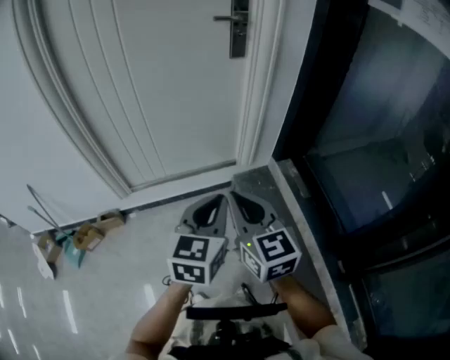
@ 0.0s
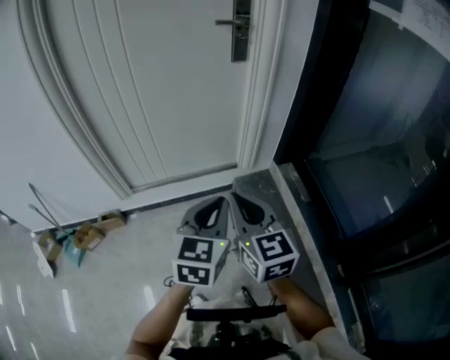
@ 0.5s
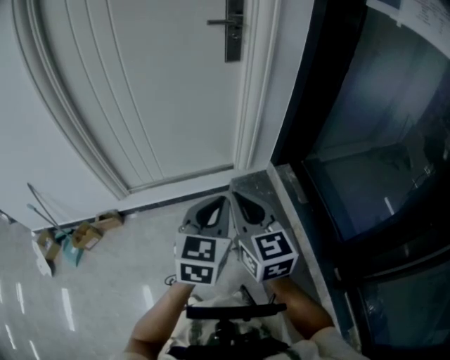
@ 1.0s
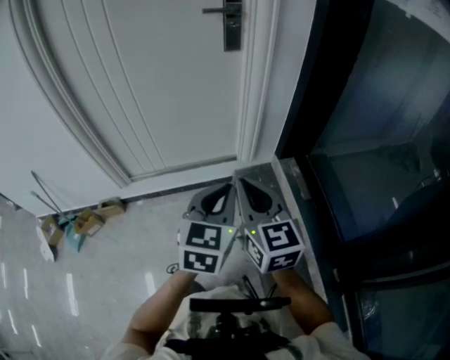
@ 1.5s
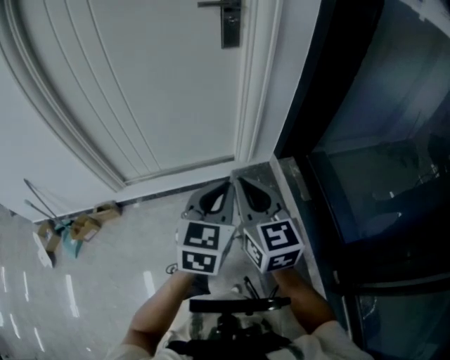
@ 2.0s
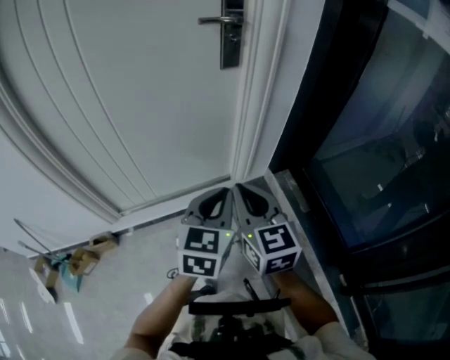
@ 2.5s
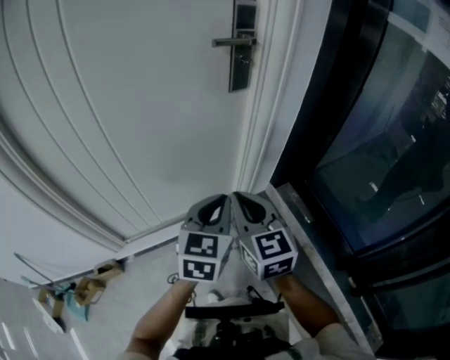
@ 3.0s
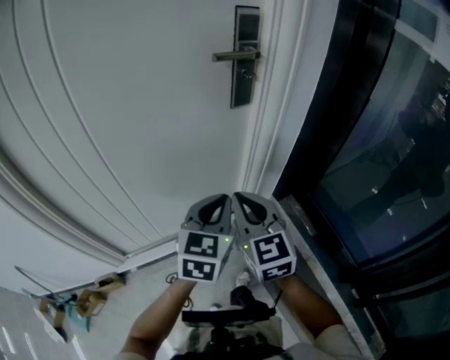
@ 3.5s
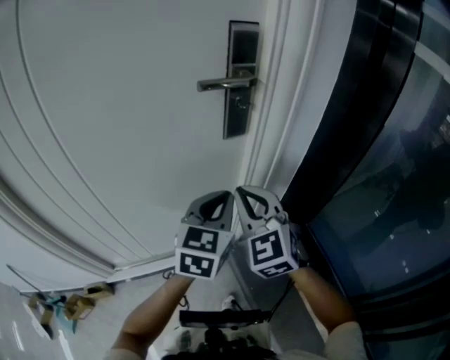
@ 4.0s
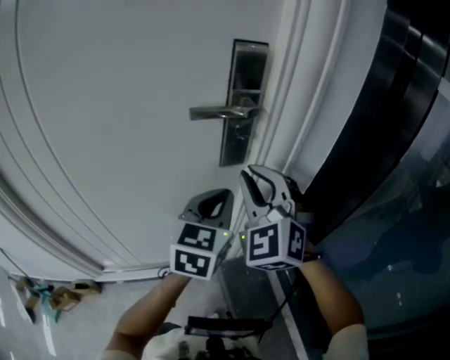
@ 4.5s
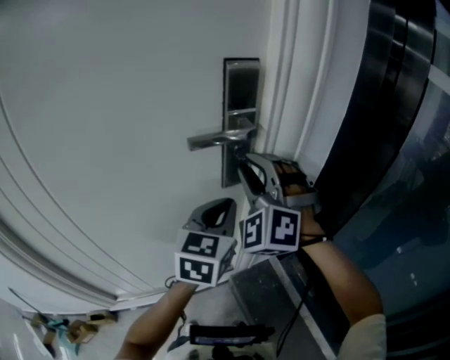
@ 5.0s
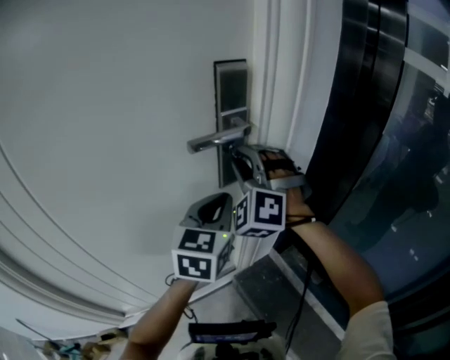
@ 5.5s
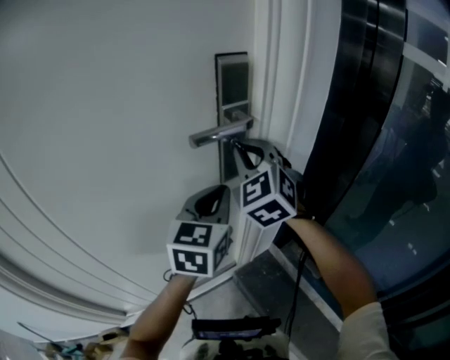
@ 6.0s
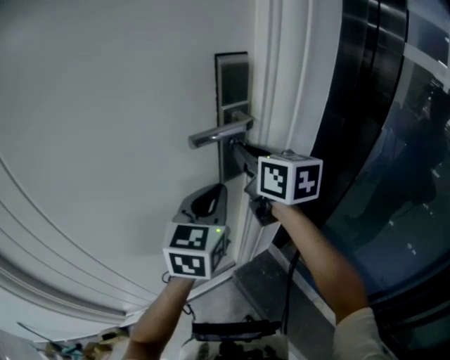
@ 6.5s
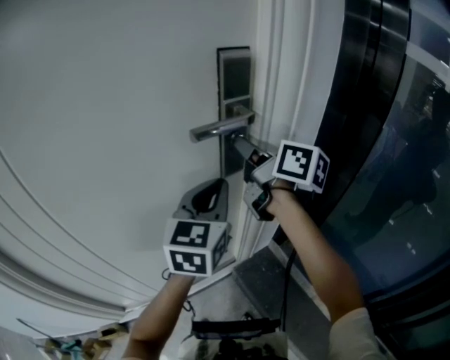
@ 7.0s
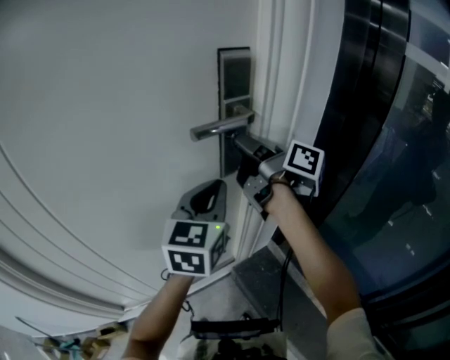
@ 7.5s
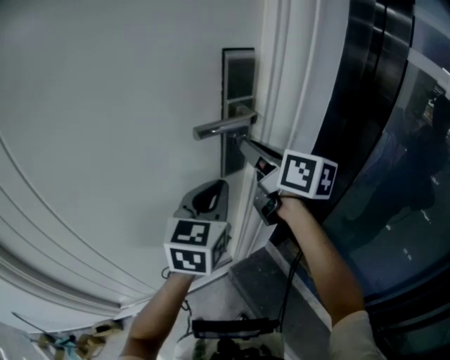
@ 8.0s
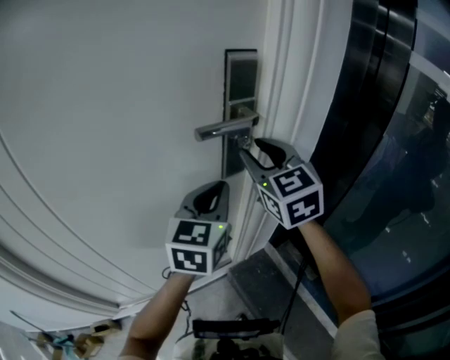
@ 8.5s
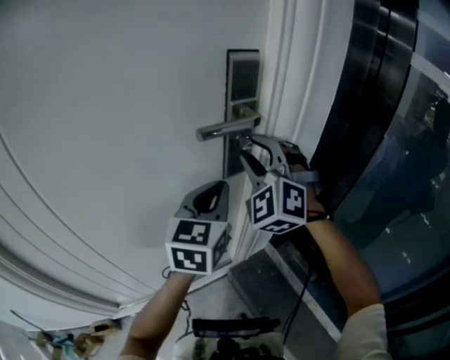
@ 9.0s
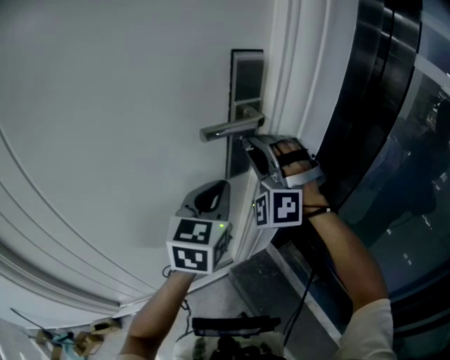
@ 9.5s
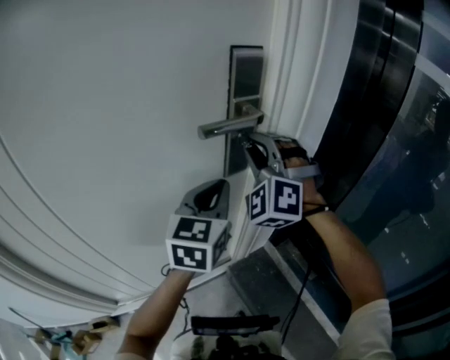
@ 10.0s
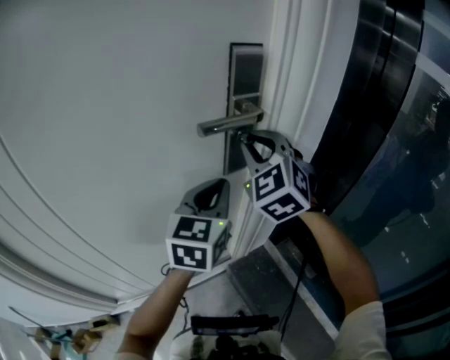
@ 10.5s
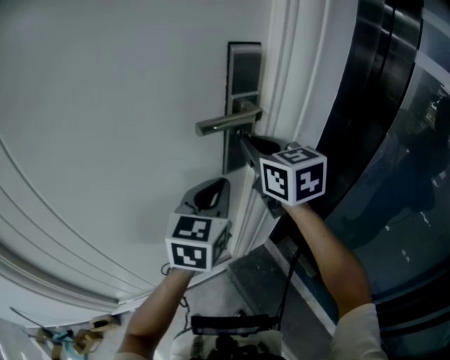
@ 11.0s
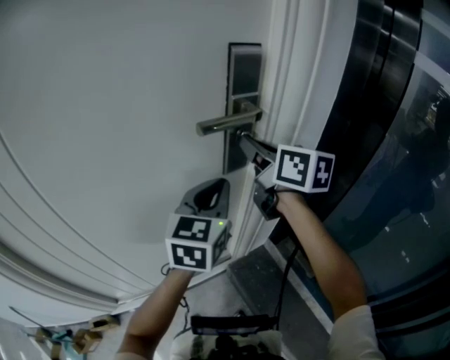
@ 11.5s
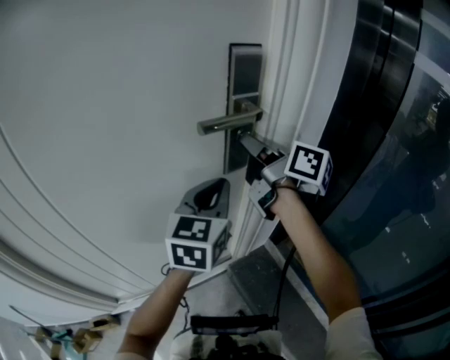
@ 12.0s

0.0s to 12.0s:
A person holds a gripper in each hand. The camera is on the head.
0.0s to 2.0s: The two grippers go approximately 10 cm to the right and forward.
2.0s to 4.0s: The two grippers go some 30 cm forward. The right gripper rotates approximately 40 degrees.
4.0s to 6.0s: The right gripper goes about 20 cm forward and upward, and opens, then closes again, while the left gripper heads forward and upward, covering approximately 15 cm.
6.0s to 8.0s: The right gripper twists roughly 70 degrees clockwise, seen from behind.
8.0s to 10.0s: The right gripper rotates around the line of its fingers by approximately 100 degrees, counterclockwise from behind.
10.0s to 12.0s: The right gripper rolls clockwise, seen from behind, by approximately 130 degrees.

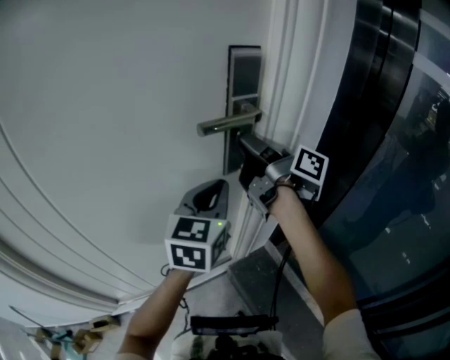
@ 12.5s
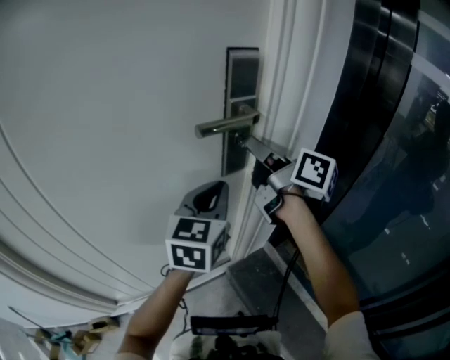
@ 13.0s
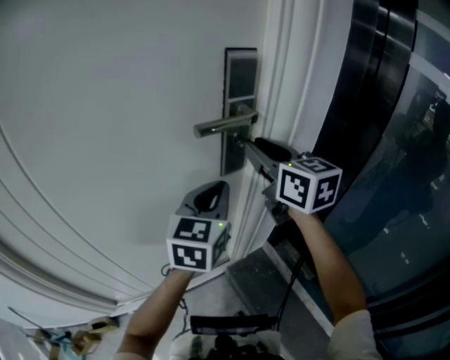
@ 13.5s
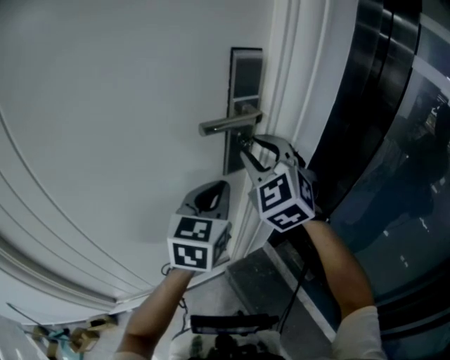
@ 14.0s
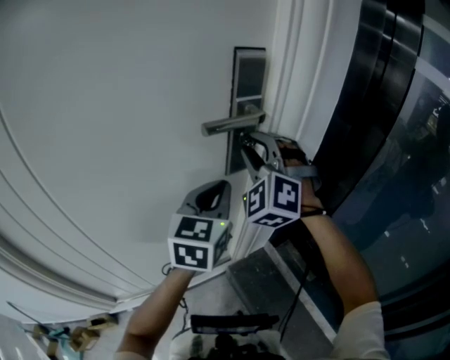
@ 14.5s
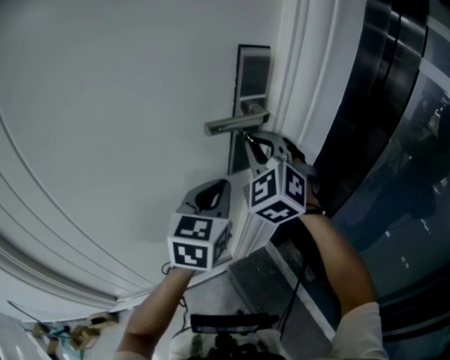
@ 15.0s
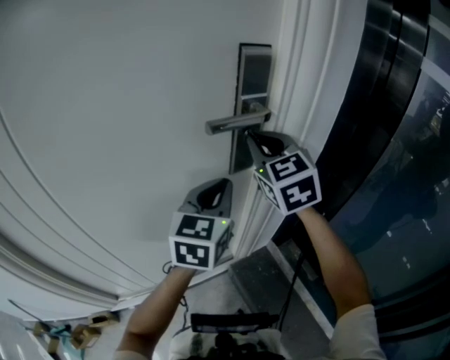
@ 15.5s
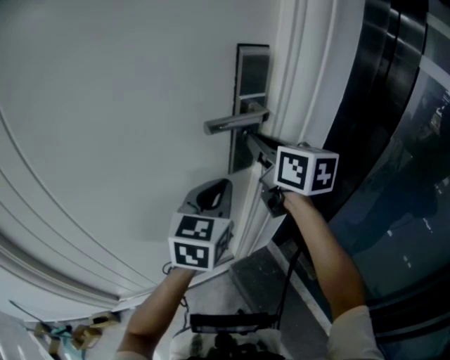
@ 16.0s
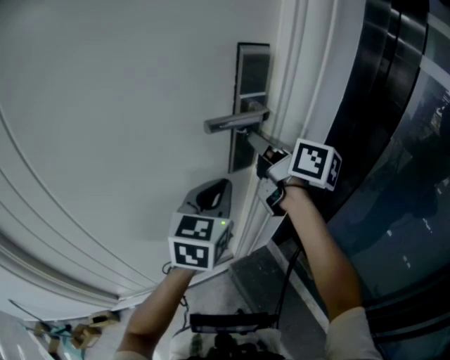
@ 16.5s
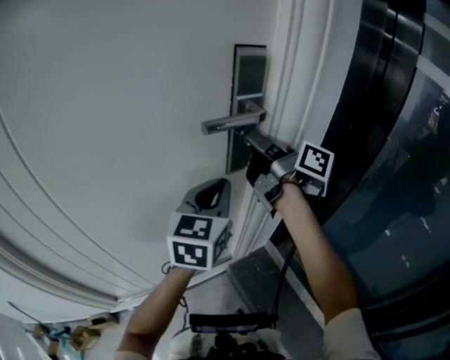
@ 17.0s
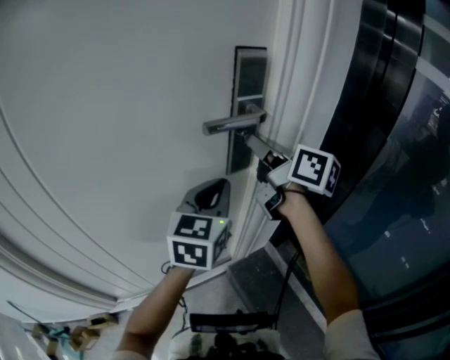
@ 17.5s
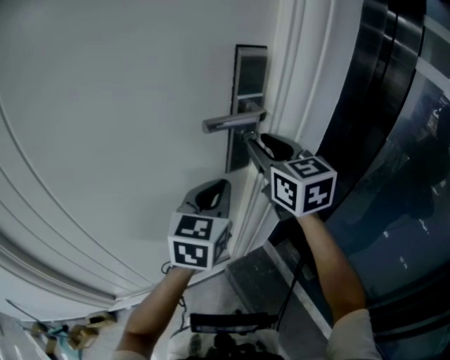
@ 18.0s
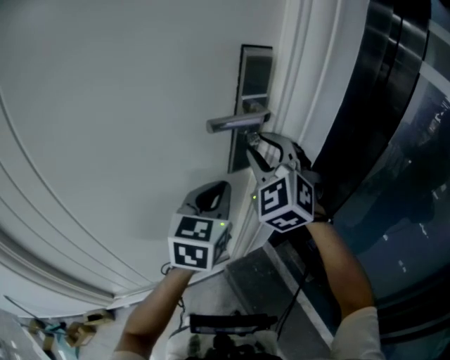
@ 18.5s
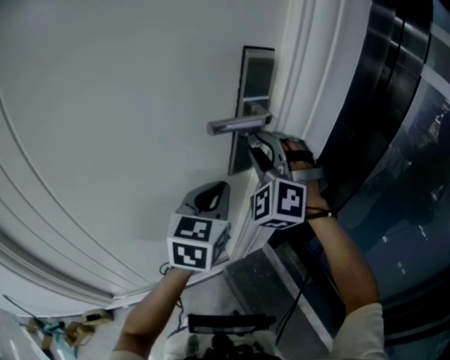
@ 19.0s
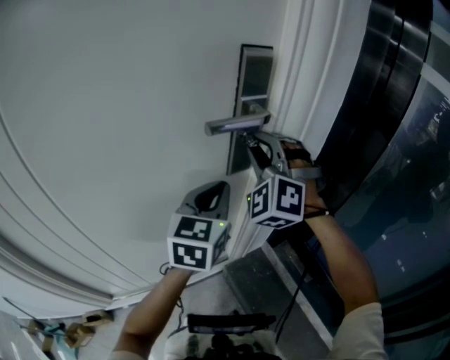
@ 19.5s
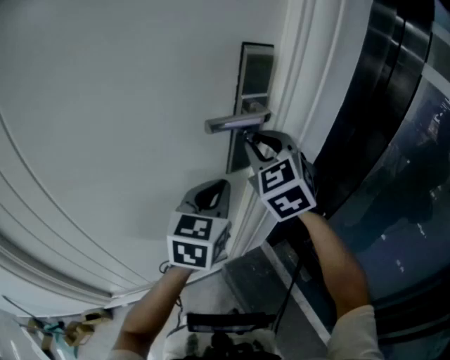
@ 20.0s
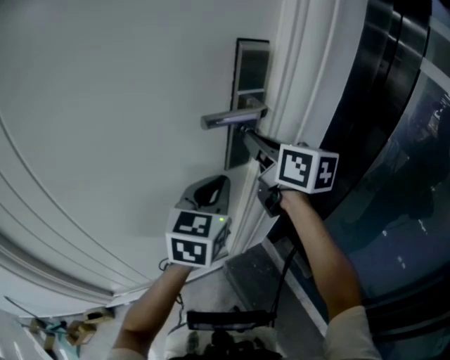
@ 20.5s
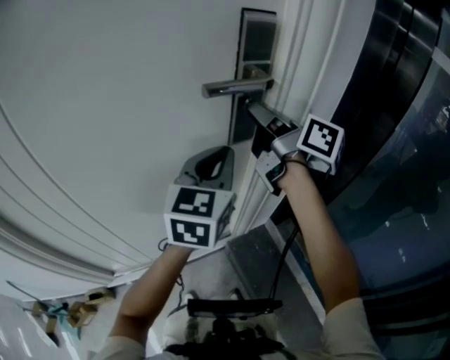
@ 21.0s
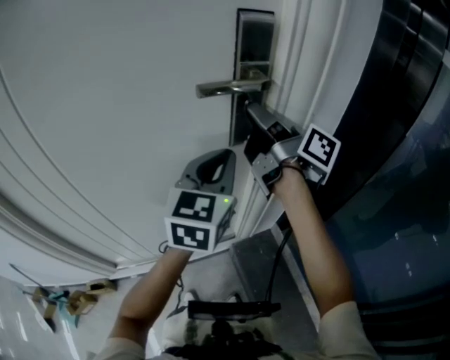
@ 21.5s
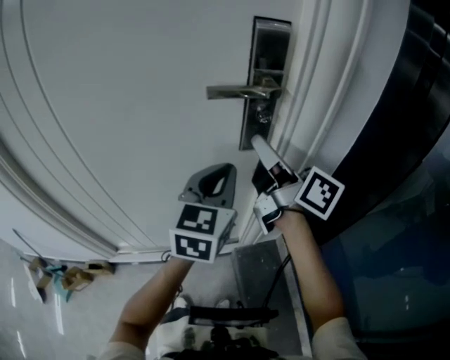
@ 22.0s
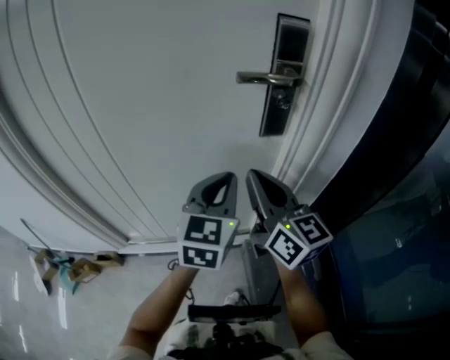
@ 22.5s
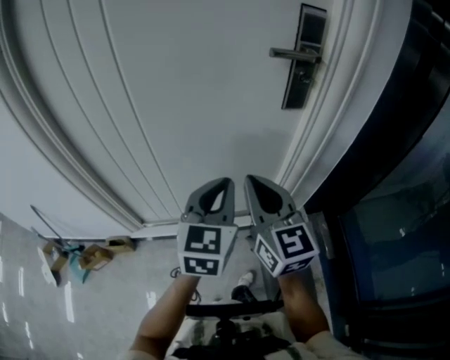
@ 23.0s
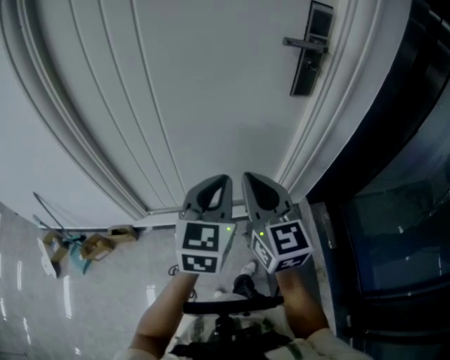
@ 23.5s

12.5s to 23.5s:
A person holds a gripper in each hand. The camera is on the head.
12.5s to 14.5s: The right gripper twists approximately 140 degrees counterclockwise, seen from behind.
14.5s to 16.0s: The right gripper rotates around the line of its fingers by roughly 80 degrees, clockwise from behind, and closes its fingers.
16.0s to 18.0s: The right gripper changes its angle by roughly 20 degrees, and opens its fingers.
18.0s to 20.0s: The right gripper swivels some 30 degrees.
20.0s to 21.5s: The right gripper twists approximately 100 degrees clockwise, seen from behind.
21.5s to 23.5s: Both grippers travel together backward, to the left and downward, some 35 cm. The right gripper rolls counterclockwise, seen from behind, by about 70 degrees.

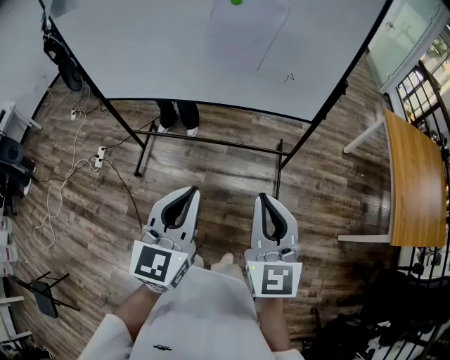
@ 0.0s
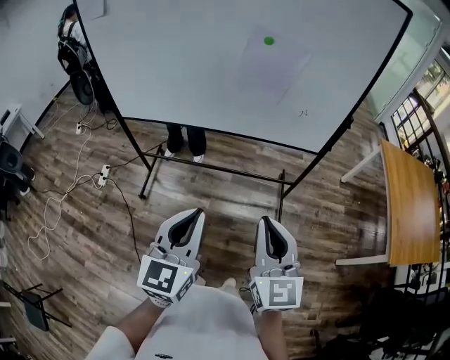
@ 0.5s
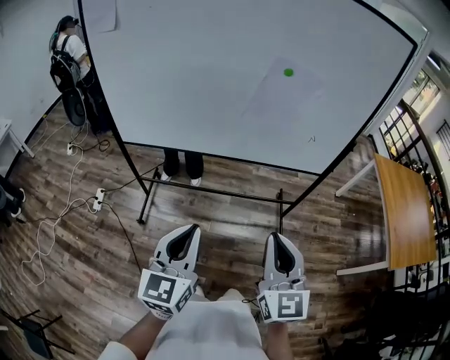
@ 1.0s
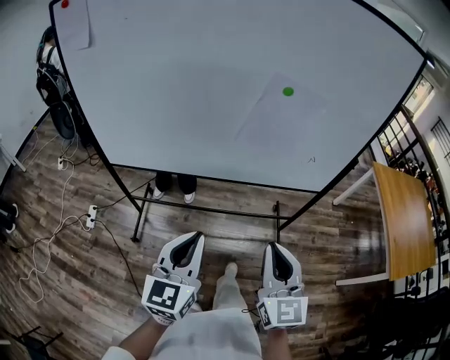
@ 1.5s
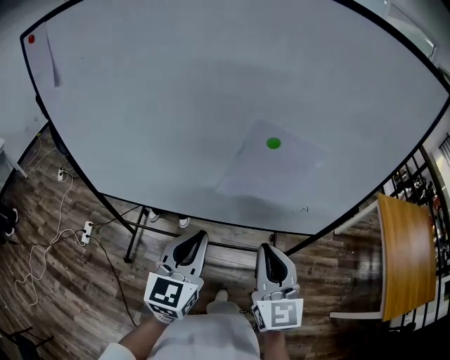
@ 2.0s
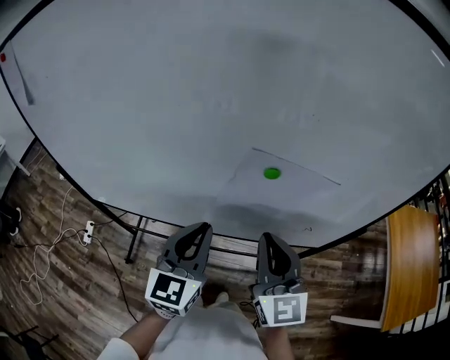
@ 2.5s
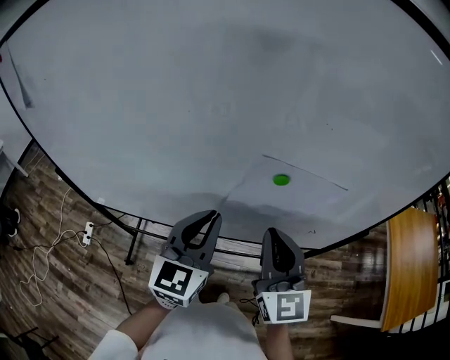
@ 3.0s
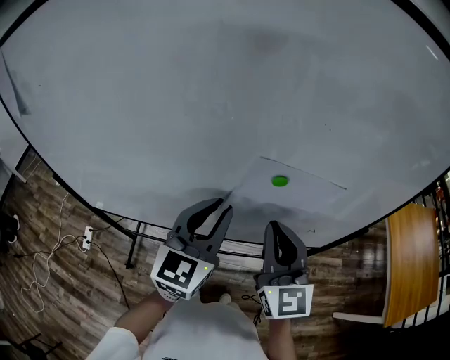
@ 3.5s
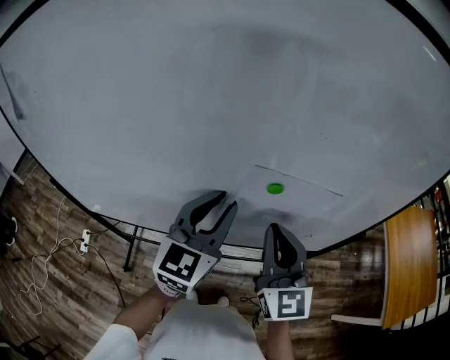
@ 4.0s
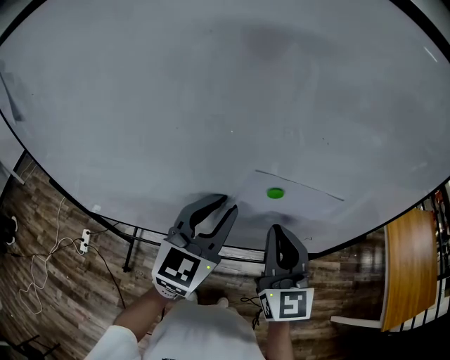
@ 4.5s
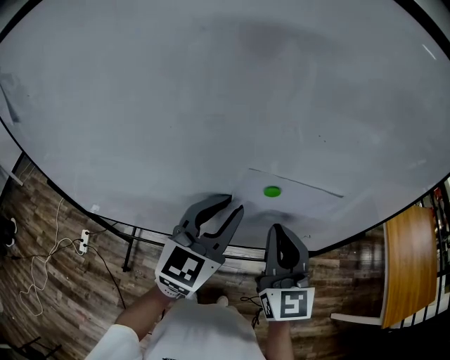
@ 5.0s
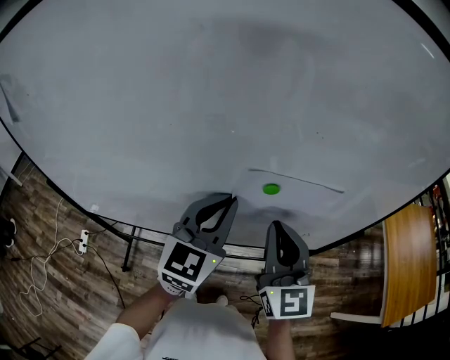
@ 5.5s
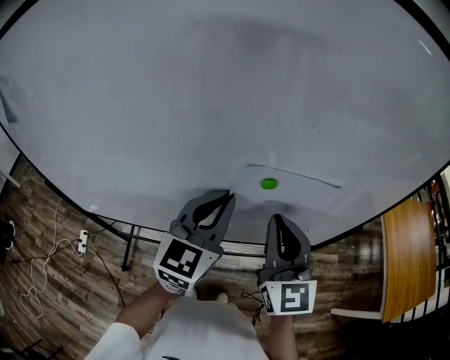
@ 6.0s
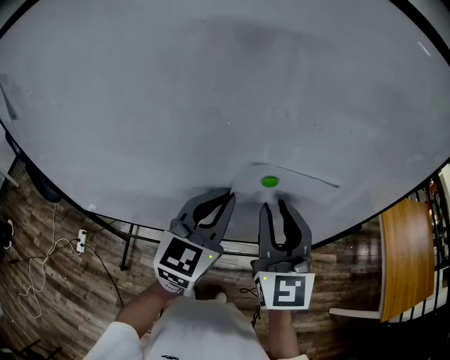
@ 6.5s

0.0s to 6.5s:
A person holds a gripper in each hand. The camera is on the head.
0.0s to 2.0s: The grippers both shift forward by some 30 cm.
2.0s to 4.5s: Both grippers move forward, roughly 15 cm.
4.5s to 6.5s: The right gripper opens its fingers.
